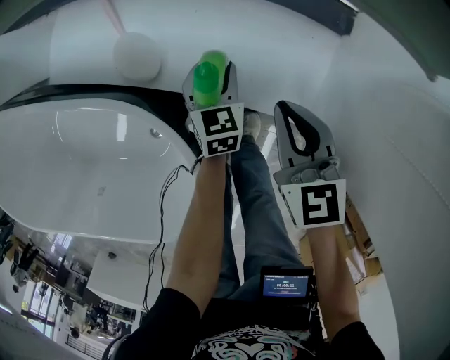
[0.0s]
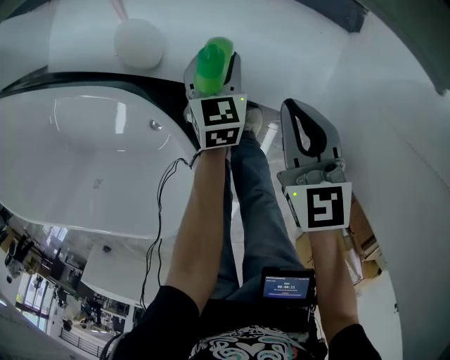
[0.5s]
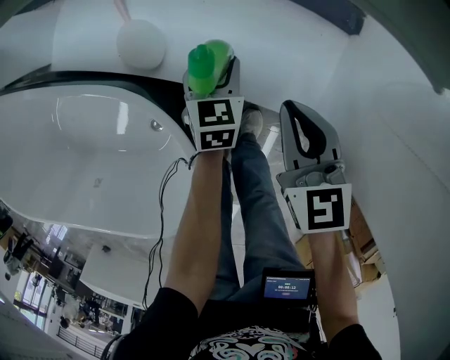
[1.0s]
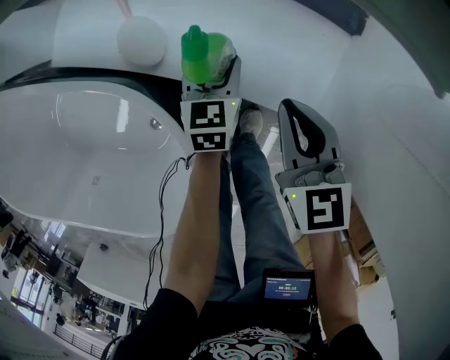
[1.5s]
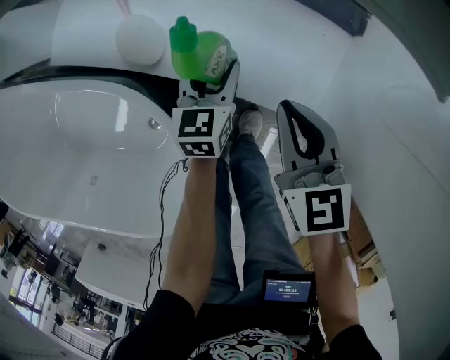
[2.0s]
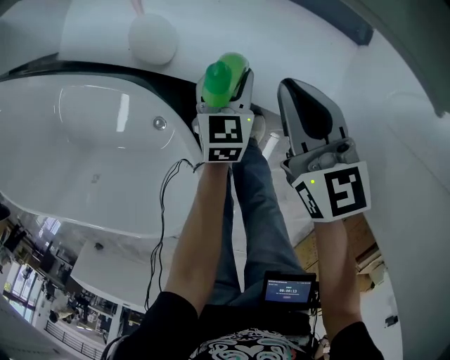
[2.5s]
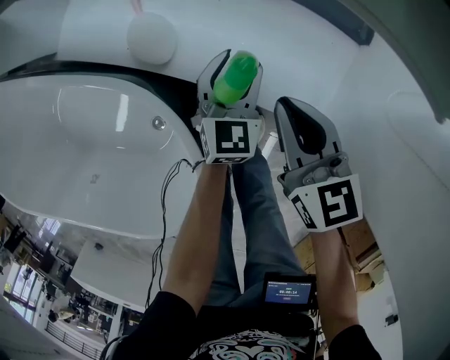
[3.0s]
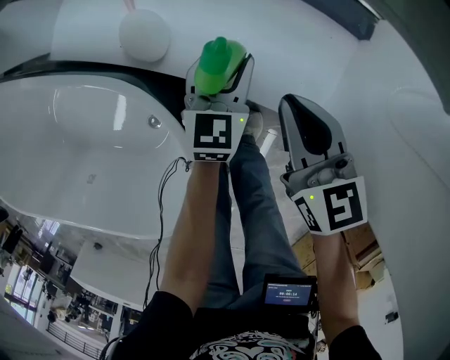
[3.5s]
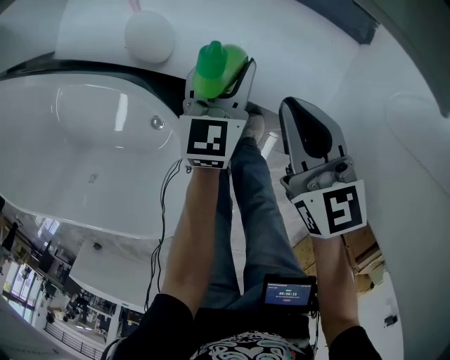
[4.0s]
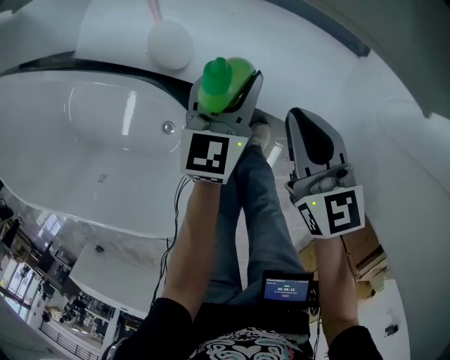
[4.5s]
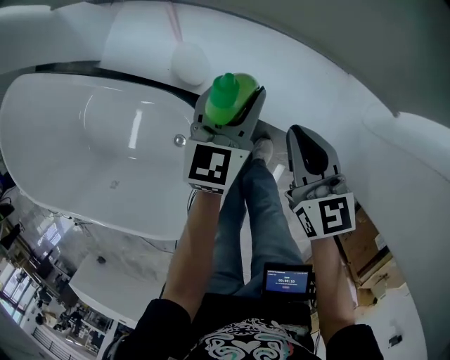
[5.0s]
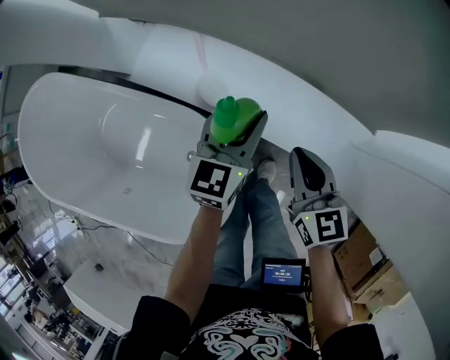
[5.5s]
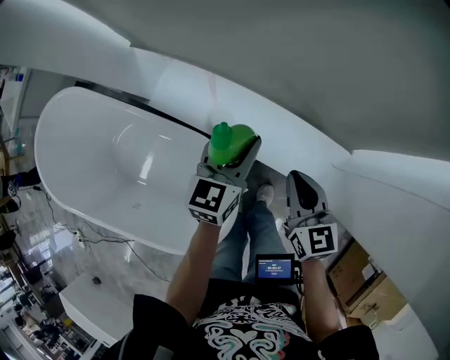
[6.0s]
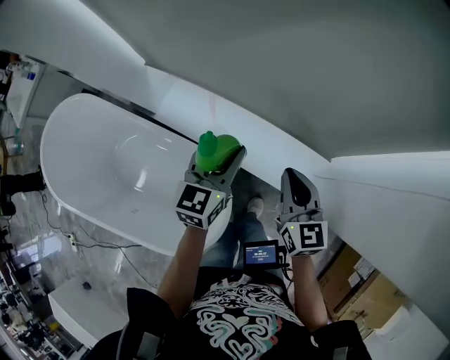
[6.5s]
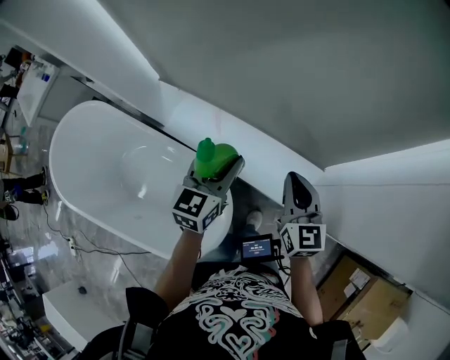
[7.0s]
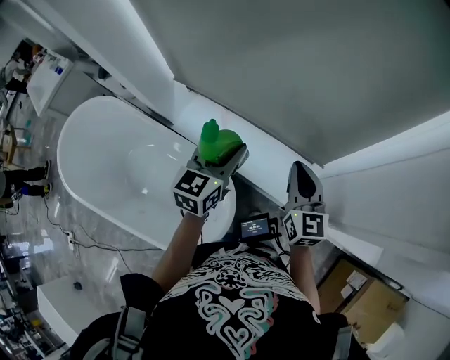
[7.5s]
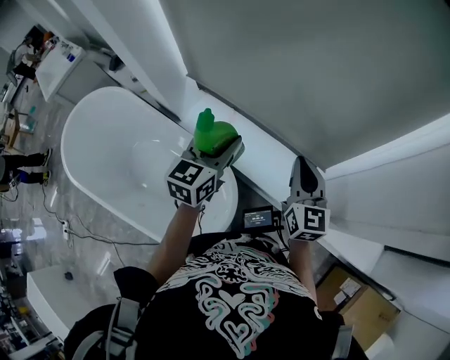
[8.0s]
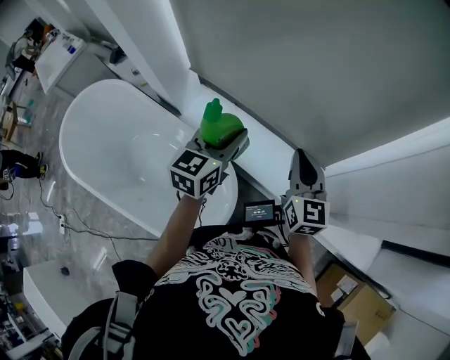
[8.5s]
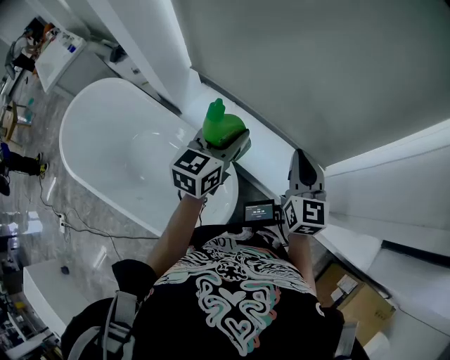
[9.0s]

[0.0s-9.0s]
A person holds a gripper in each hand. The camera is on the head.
0.0s to 2.0s: The grippers make only small movements.
2.0s to 4.5s: The left gripper heads upward, covering approximately 10 cm.
4.5s to 7.0s: Both grippers travel together upward, some 35 cm.
7.0s to 9.0s: The left gripper heads upward and to the left, covering approximately 10 cm. The right gripper shifts approximately 10 cm upward.

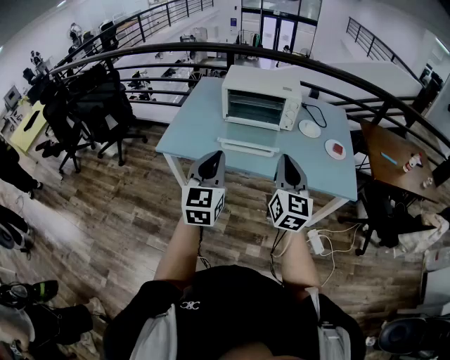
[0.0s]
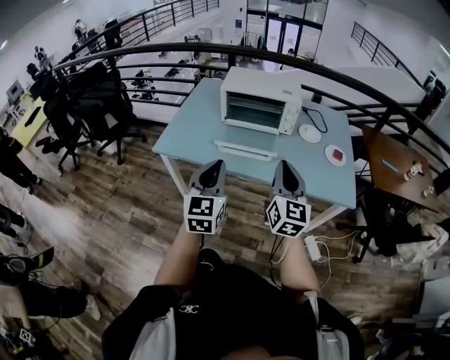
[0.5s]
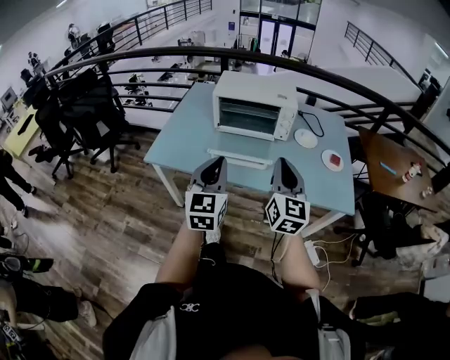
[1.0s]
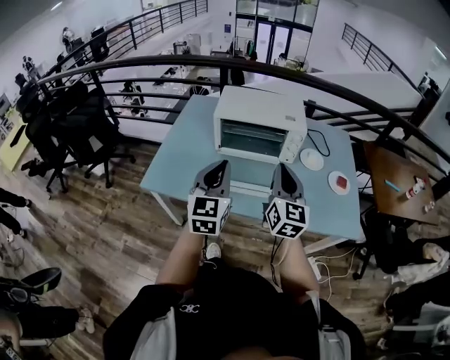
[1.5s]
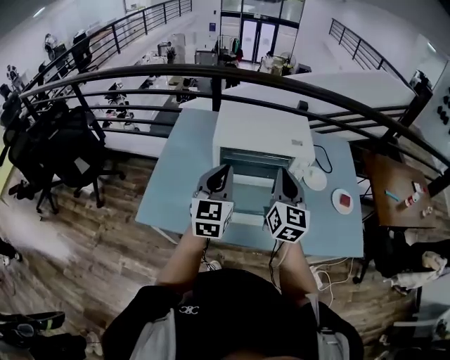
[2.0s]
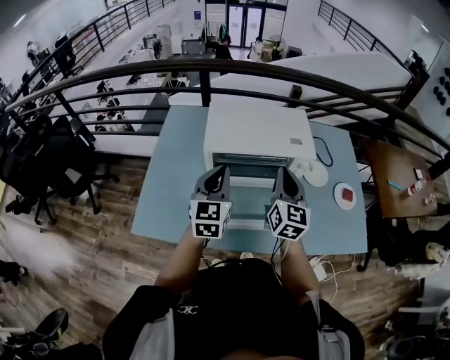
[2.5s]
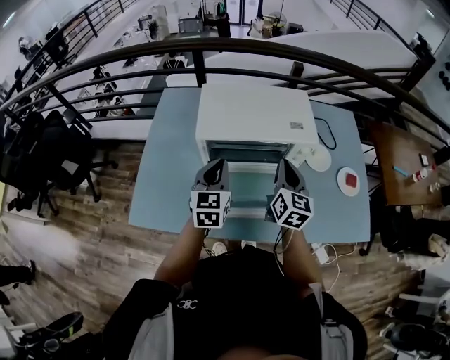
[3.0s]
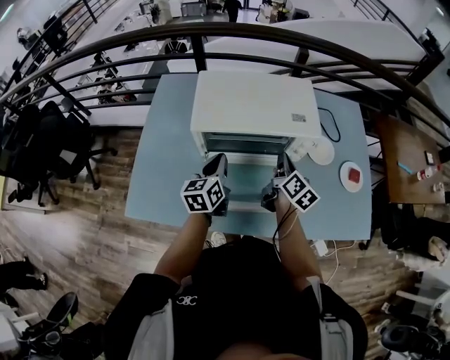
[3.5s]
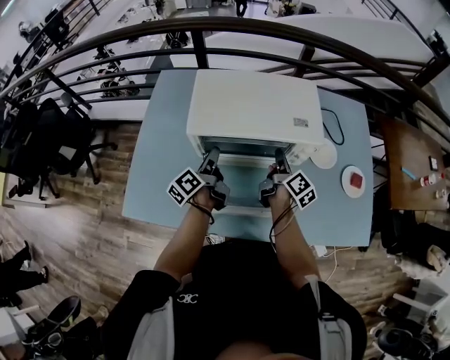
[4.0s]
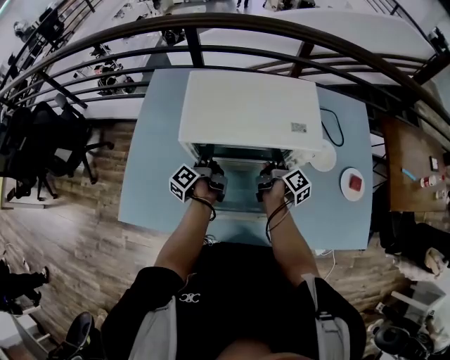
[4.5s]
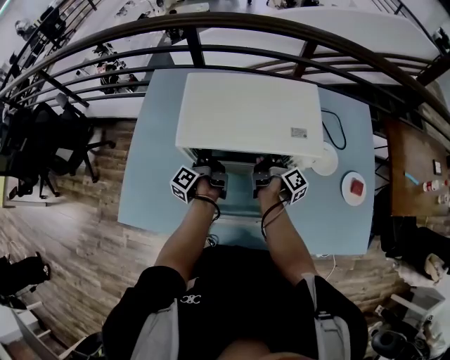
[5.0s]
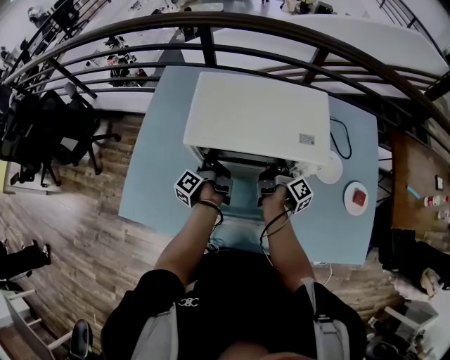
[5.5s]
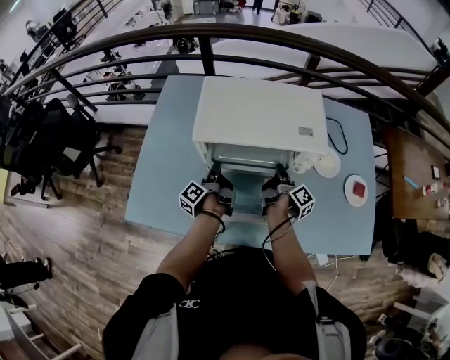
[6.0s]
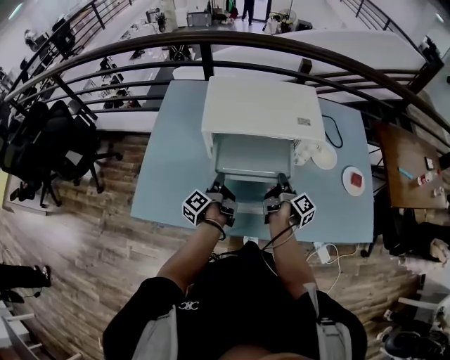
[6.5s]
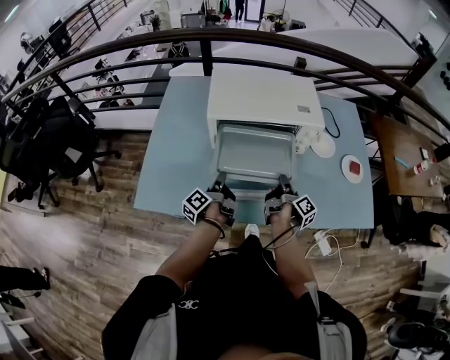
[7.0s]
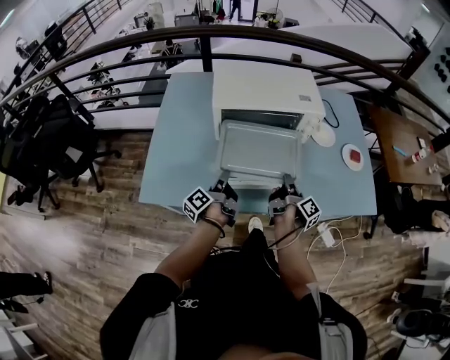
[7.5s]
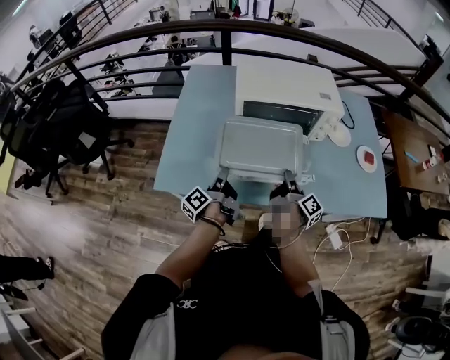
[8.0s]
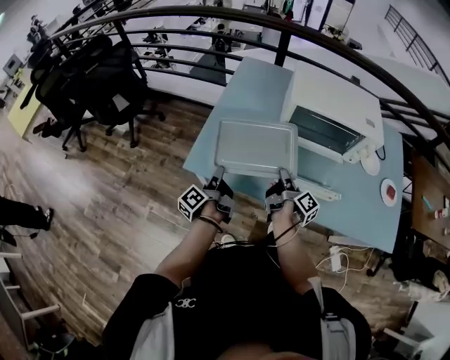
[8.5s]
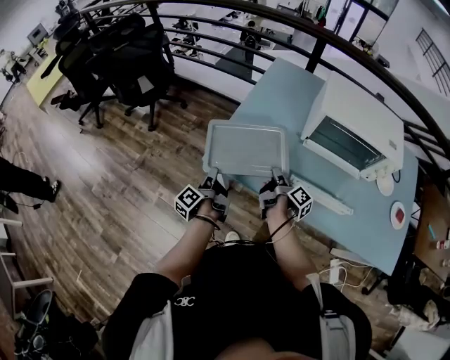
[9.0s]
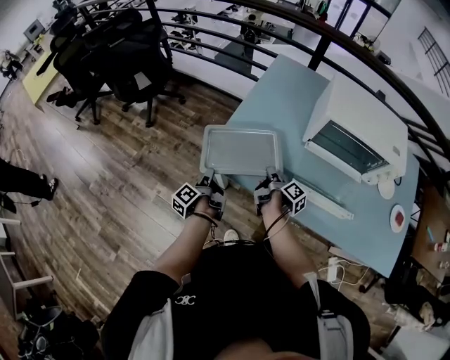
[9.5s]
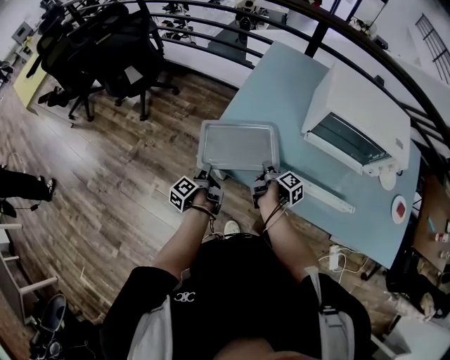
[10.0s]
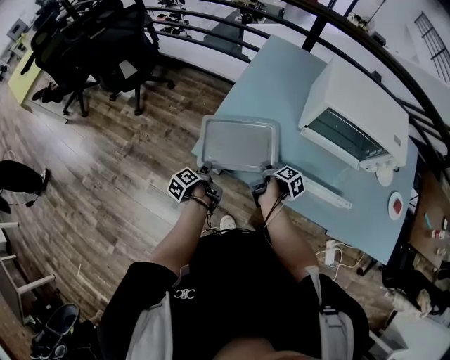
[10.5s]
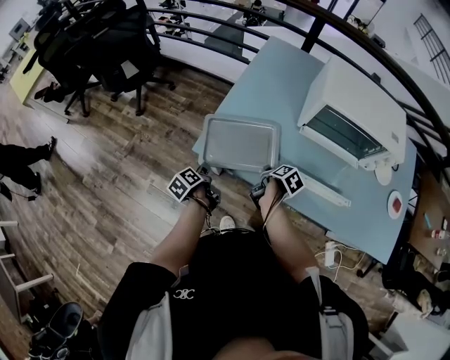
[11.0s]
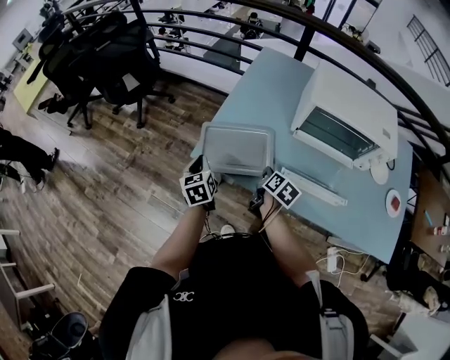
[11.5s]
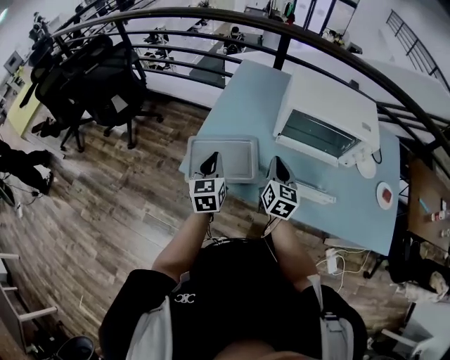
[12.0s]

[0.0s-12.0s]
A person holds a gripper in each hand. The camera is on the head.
0.0s to 2.0s: The two grippers go about 35 cm forward.
2.0s to 4.0s: The two grippers go about 25 cm downward and forward. The right gripper twists approximately 60 degrees clockwise, seen from behind, and opens up. The left gripper rotates around the line of its fingers by some 70 degrees, counterclockwise from behind, and opens.
4.0s to 6.0s: Both grippers travel together downward, approximately 5 cm. The left gripper rotates approximately 20 degrees, and closes. The right gripper changes its angle by some 20 degrees.
6.0s to 8.0s: Both grippers travel together backward, approximately 20 cm.
8.0s to 10.0s: The right gripper ends up roughly 30 cm from where it was, and rotates about 40 degrees; the left gripper changes place by approximately 30 cm, and turns by approximately 30 degrees.
10.0s to 12.0s: Both grippers travel together upward and to the right, approximately 20 cm. The right gripper twists approximately 70 degrees counterclockwise, seen from behind, and opens, then closes again. The left gripper rotates around the line of its fingers by roughly 80 degrees, clockwise from behind.

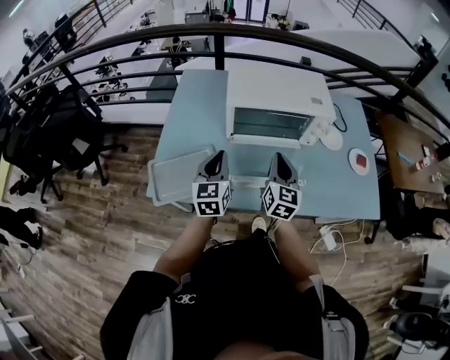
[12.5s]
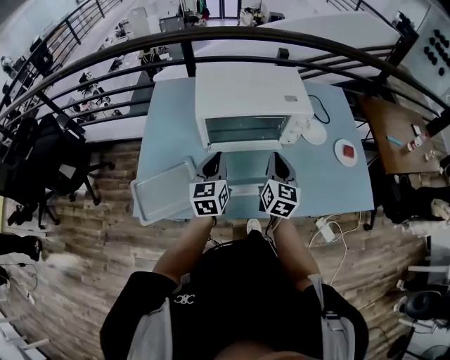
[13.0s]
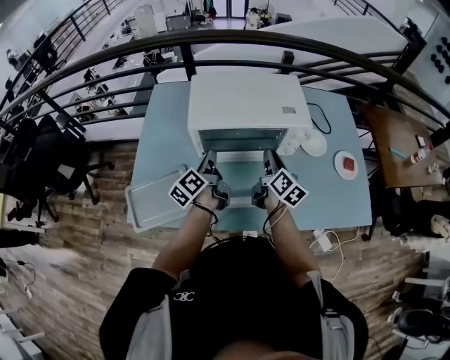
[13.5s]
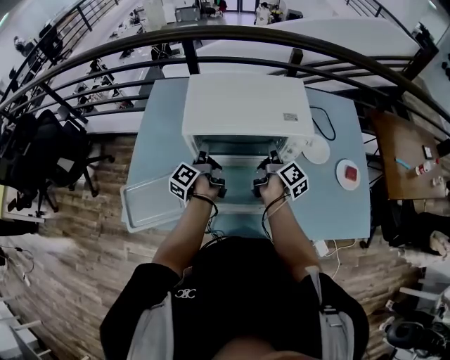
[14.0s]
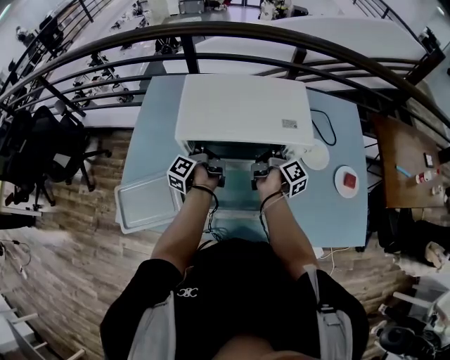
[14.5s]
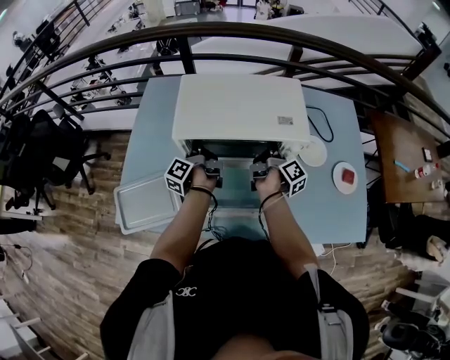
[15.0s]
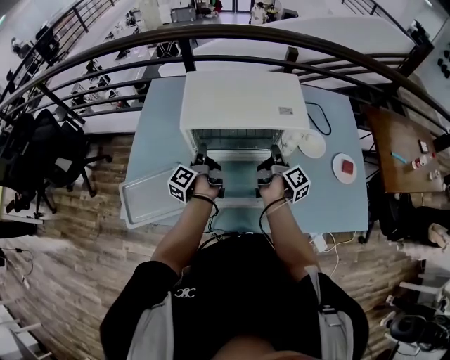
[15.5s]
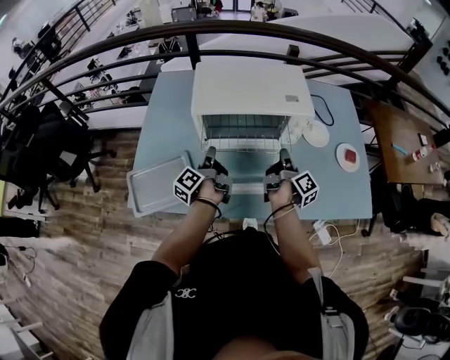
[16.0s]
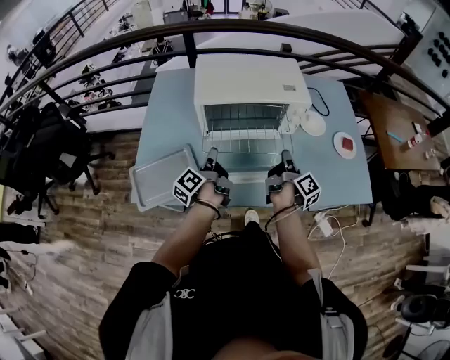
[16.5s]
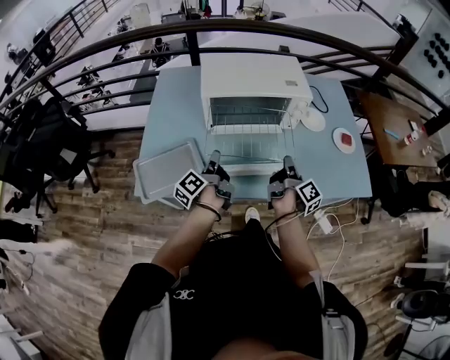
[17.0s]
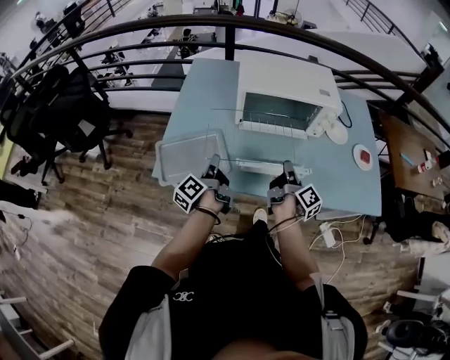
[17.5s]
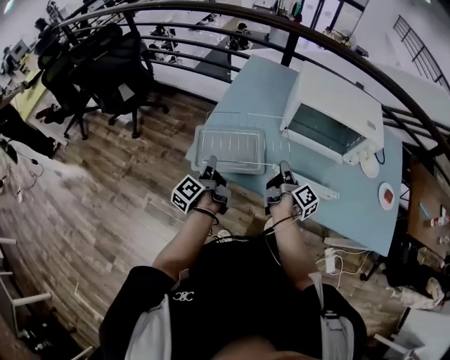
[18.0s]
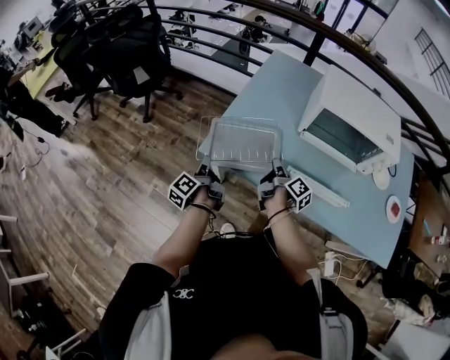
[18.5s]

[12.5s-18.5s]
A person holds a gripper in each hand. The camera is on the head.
12.5s to 14.5s: The left gripper goes roughly 25 cm forward and downward, rotates around the line of its fingers by about 80 degrees, counterclockwise from behind, and opens its fingers. Meanwhile the right gripper shifts about 25 cm forward and to the right, and rolls clockwise, seen from behind, by approximately 80 degrees.
14.5s to 16.5s: The two grippers go some 20 cm backward. The left gripper closes its fingers.
16.5s to 18.5s: The right gripper changes place by approximately 35 cm, and rotates about 40 degrees; the left gripper shifts by about 40 cm, and swivels approximately 30 degrees.
